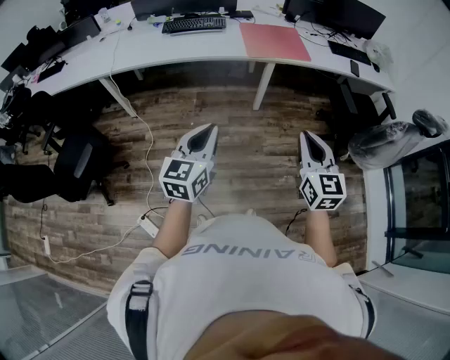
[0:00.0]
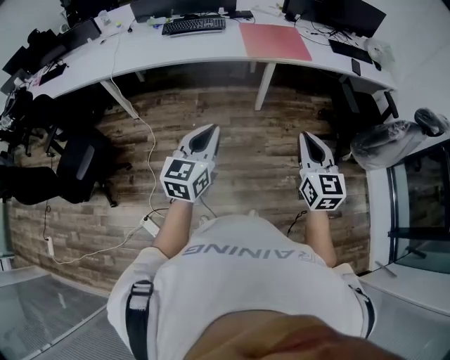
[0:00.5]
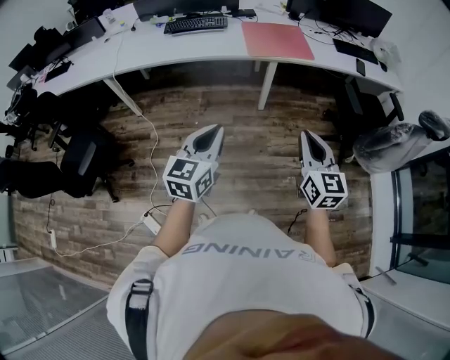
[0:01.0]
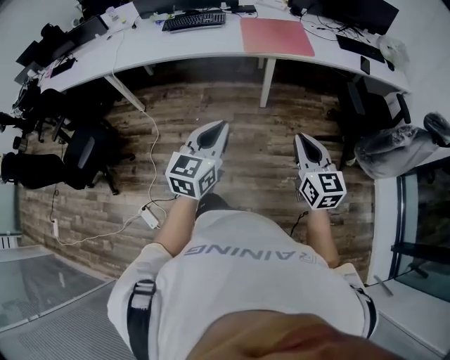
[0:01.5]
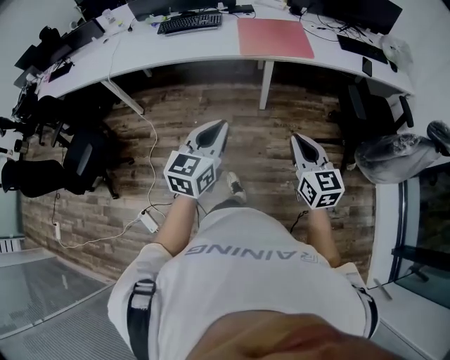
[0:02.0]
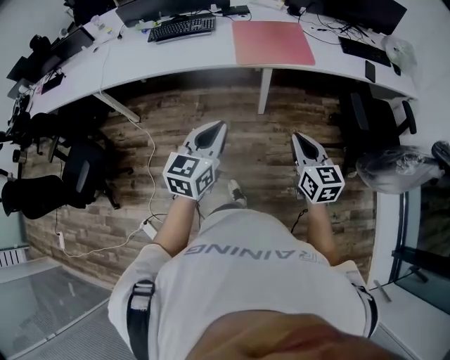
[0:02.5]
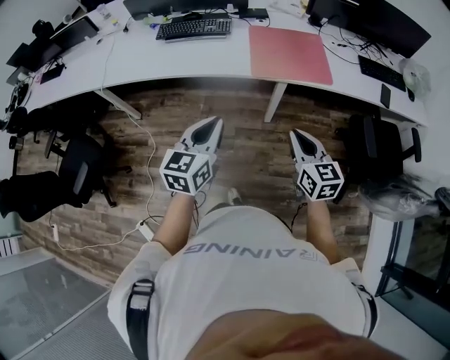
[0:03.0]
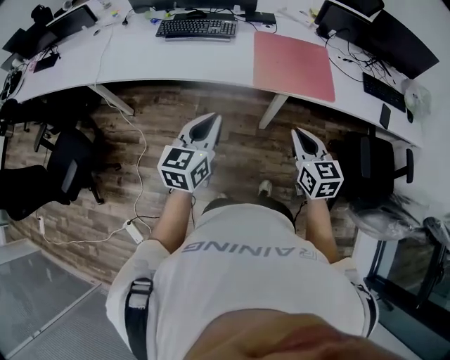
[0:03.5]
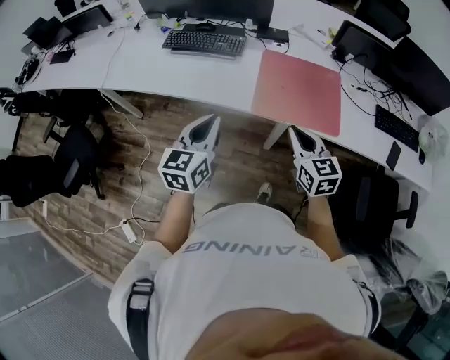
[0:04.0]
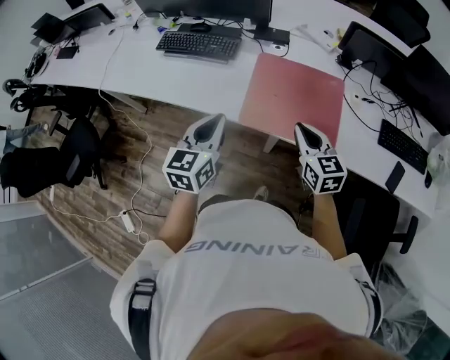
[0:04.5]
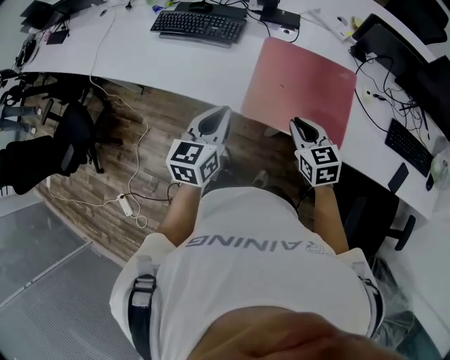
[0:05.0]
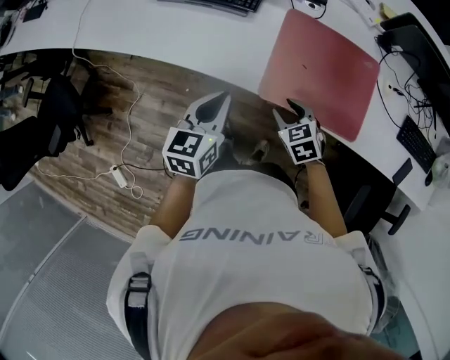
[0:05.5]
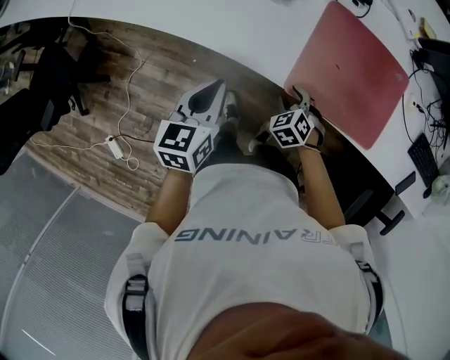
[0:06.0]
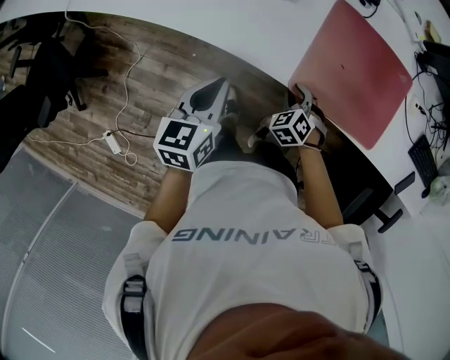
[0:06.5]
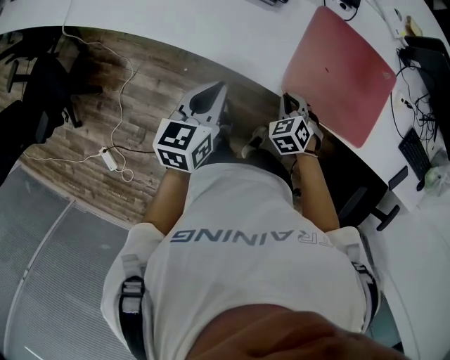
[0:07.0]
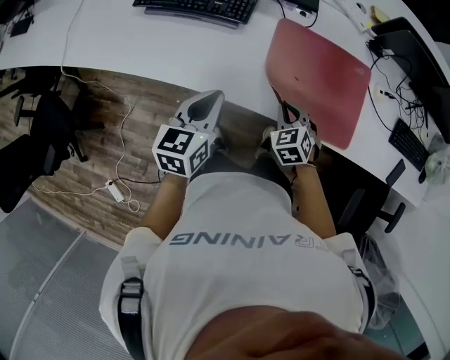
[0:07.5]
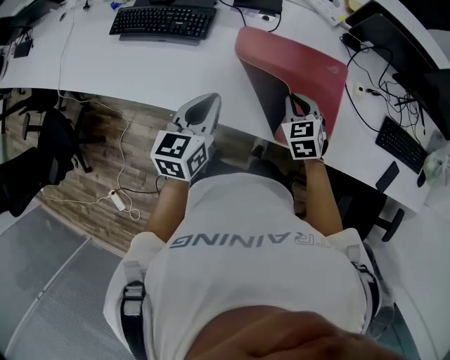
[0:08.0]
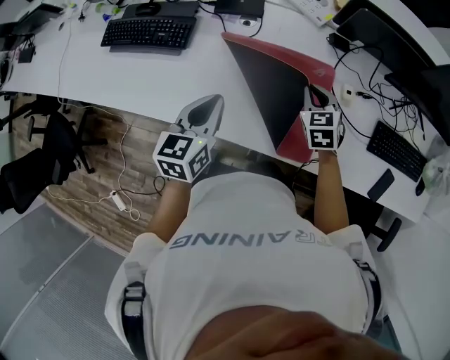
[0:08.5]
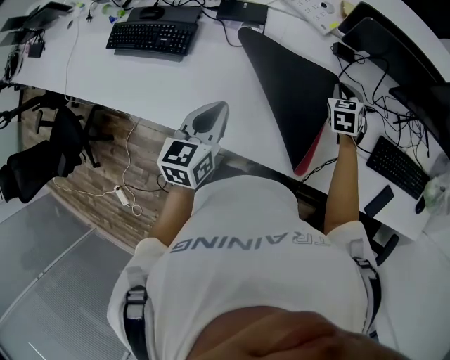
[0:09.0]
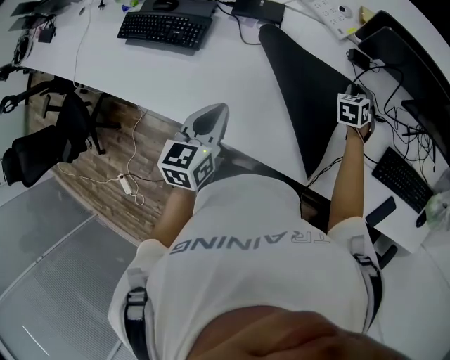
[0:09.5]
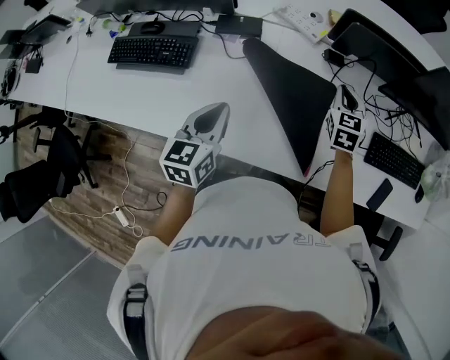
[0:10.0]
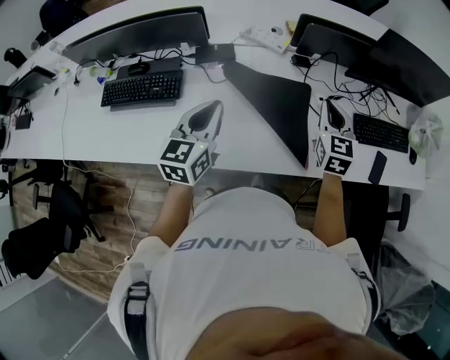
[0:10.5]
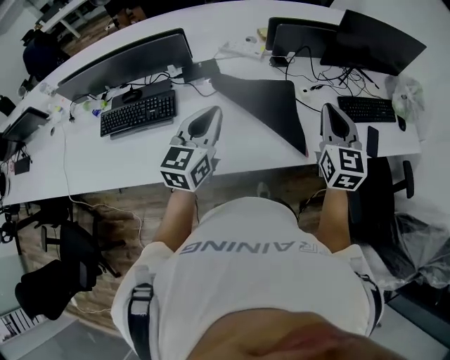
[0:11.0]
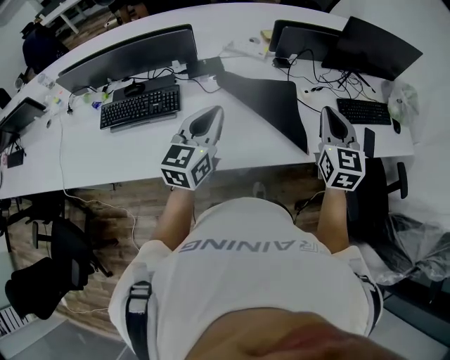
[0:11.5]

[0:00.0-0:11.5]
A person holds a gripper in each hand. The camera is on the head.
0:00.0 to 0:02.0: The left gripper moves to the right and forward, about 20 cm. The right gripper is displaced to the right, forward and downward by some 15 cm.
0:02.0 to 0:04.0: The pair of grippers is taken forward, about 50 cm.
0:04.0 to 0:06.0: Both grippers travel together downward and forward, about 30 cm. The right gripper angles its fingers downward, by some 50 degrees, and opens its fingers. The left gripper rotates approximately 20 degrees.
0:06.0 to 0:07.5: The right gripper moves upward and to the right, approximately 10 cm, and closes up; the left gripper is displaced to the right, upward and forward by roughly 10 cm.
0:07.5 to 0:09.5: The right gripper travels to the right and forward by about 50 cm, and swivels approximately 20 degrees. The left gripper goes approximately 25 cm to the right and forward.
0:09.5 to 0:11.5: The left gripper heads upward and backward, covering some 15 cm, and changes its angle by about 40 degrees. The right gripper heads upward and backward, covering some 50 cm, and angles its fingers upward, by approximately 40 degrees.

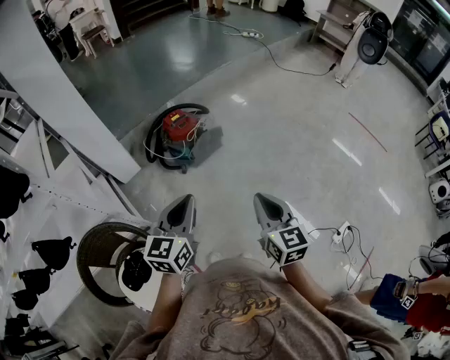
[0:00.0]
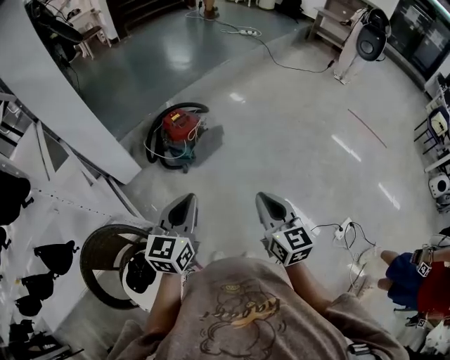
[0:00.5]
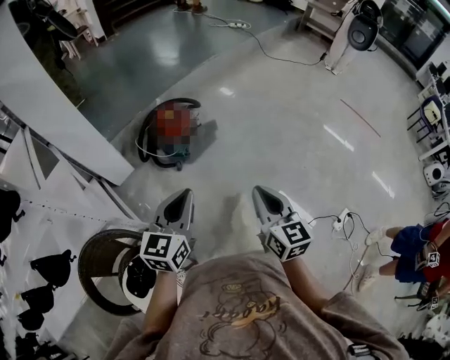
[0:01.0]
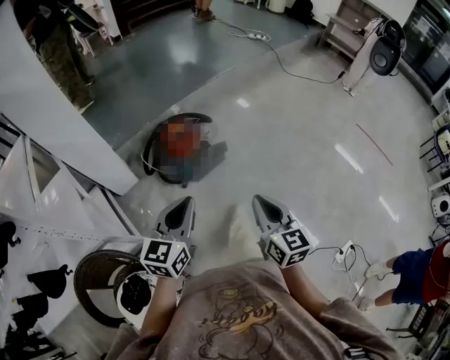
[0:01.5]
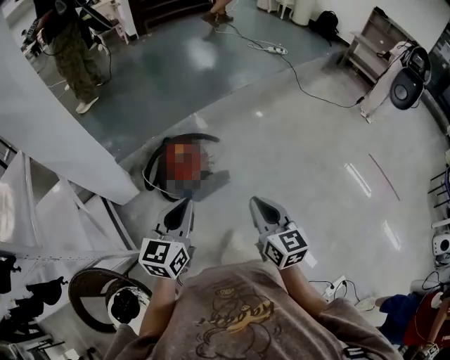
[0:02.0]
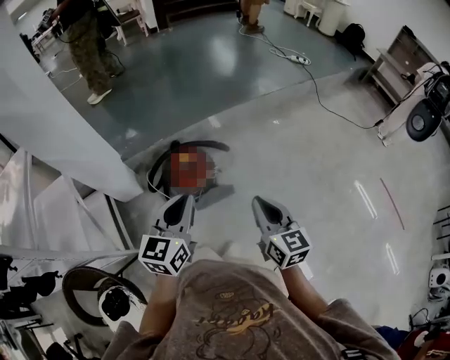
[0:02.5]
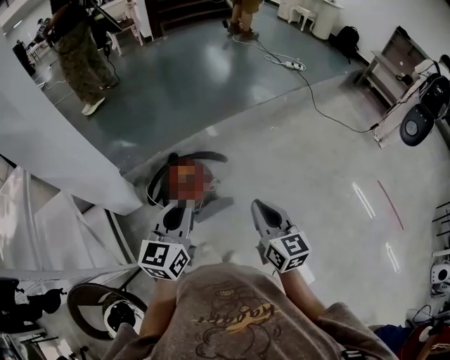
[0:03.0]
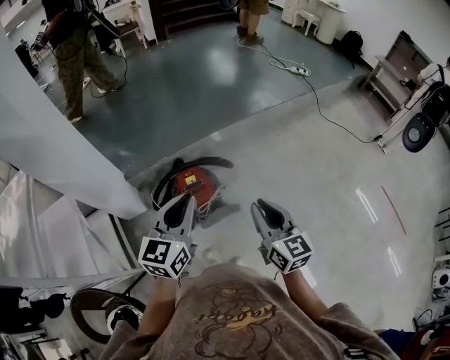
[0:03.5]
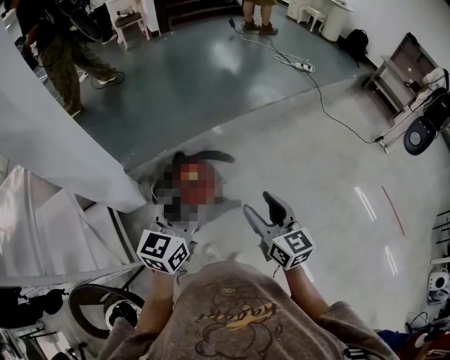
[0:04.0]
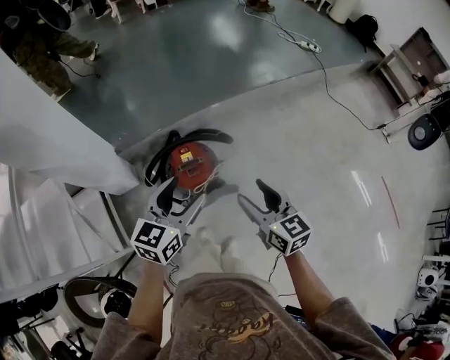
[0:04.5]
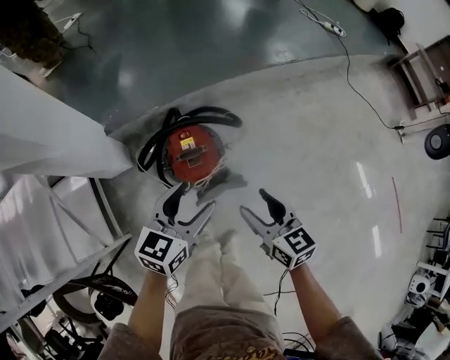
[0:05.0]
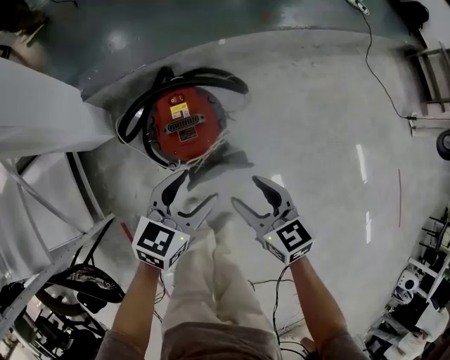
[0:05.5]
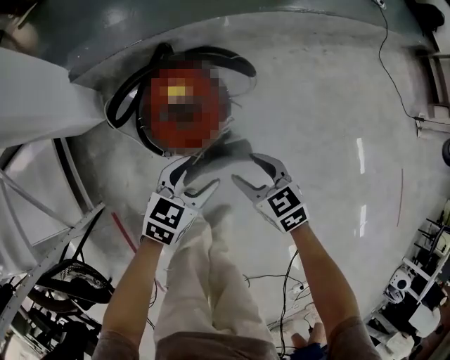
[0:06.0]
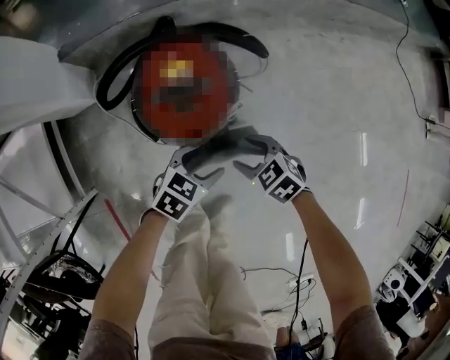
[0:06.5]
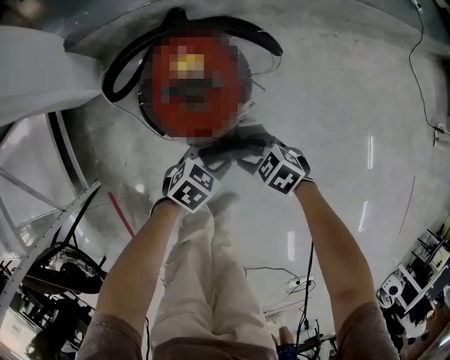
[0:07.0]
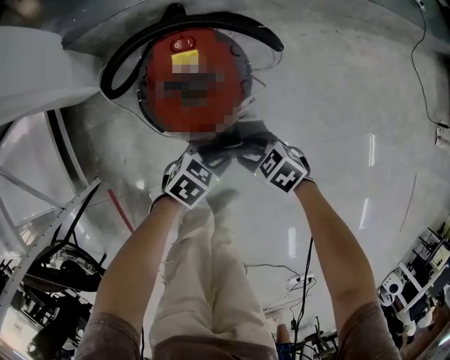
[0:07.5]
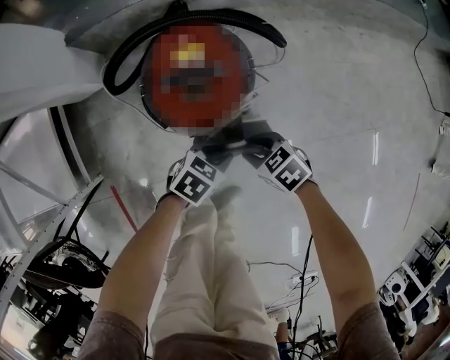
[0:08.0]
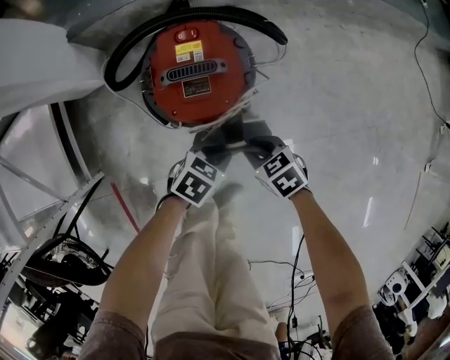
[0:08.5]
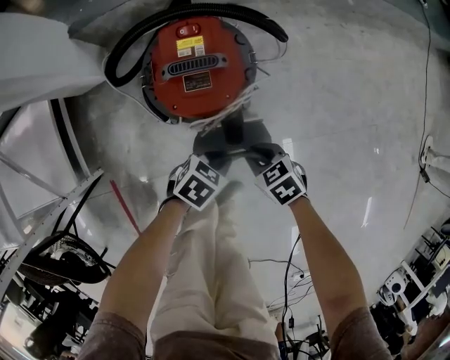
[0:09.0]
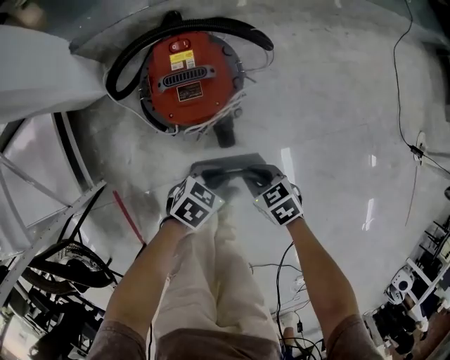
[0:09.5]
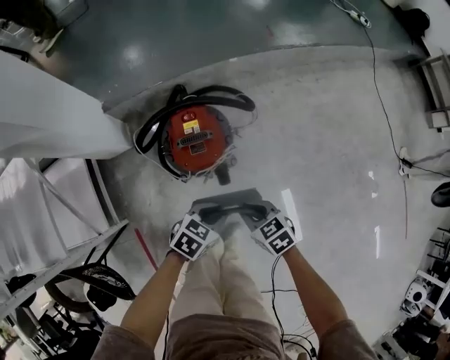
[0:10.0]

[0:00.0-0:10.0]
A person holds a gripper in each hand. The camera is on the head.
0:00.0 to 0:02.0: Both grippers move forward, roughly 30 cm.
0:02.0 to 0:04.0: Both grippers move forward, approximately 15 cm. The left gripper opens up. The right gripper opens its fingers.
0:04.0 to 0:06.0: Both grippers travel together downward, roughly 40 cm. The right gripper angles its fingers downward, by about 40 degrees. Meanwhile the left gripper turns by about 30 degrees.
0:06.0 to 0:08.0: The grippers both shift downward by approximately 15 cm. The right gripper swivels about 30 degrees, and closes its fingers. The left gripper changes its angle by approximately 20 degrees, and closes up.
0:08.0 to 0:10.0: Both grippers travel together upward, roughly 20 cm. The right gripper rotates some 20 degrees, and closes up.

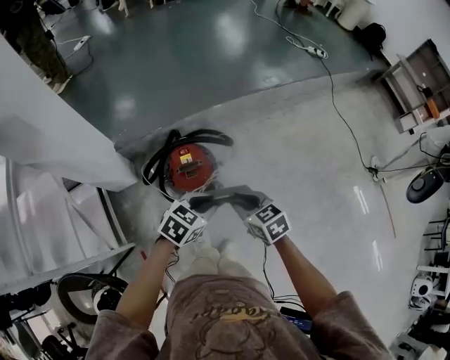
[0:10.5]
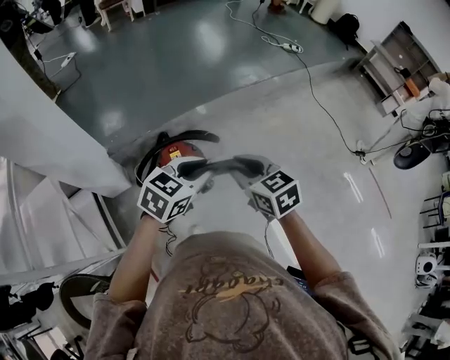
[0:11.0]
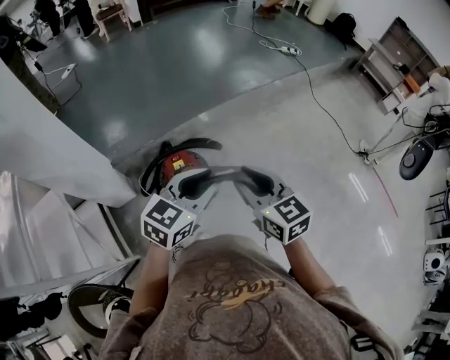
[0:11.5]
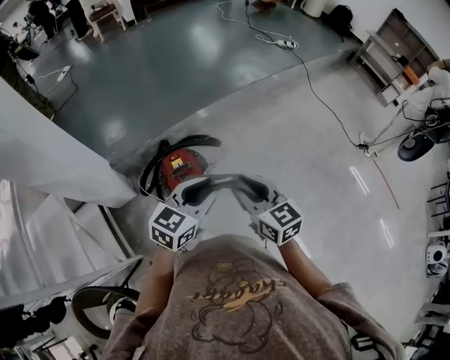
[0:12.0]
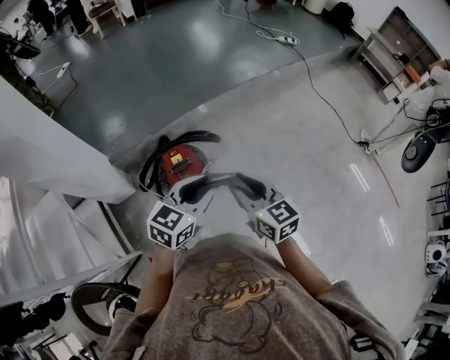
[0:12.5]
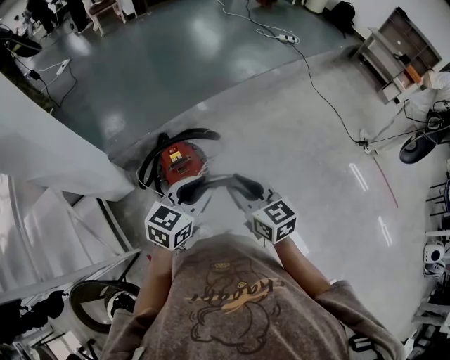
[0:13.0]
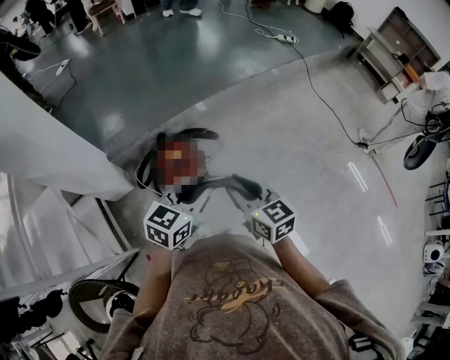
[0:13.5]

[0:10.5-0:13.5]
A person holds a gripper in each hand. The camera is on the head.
0:10.5 to 0:12.0: The two grippers go some 15 cm upward. The left gripper turns by about 20 degrees; the right gripper rotates roughly 30 degrees.
0:12.0 to 0:13.5: There are only small adjustments of the grippers.

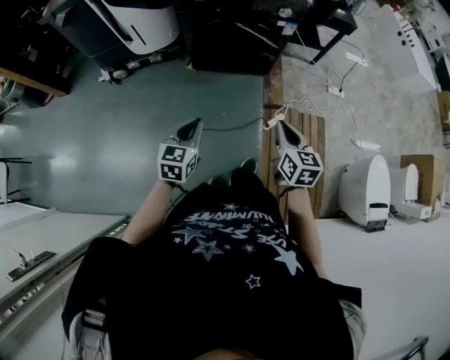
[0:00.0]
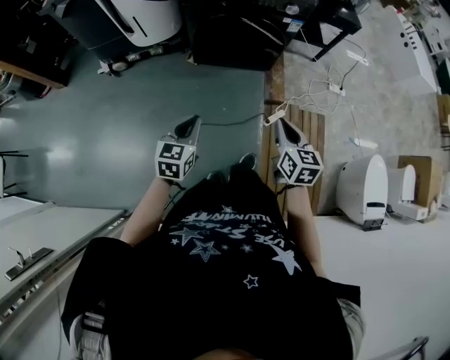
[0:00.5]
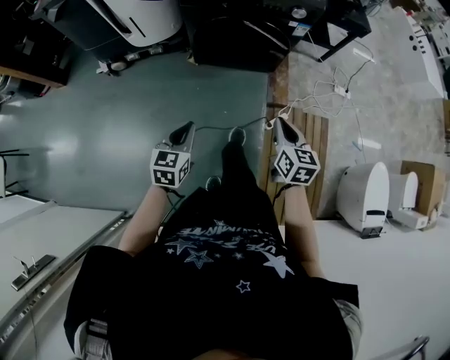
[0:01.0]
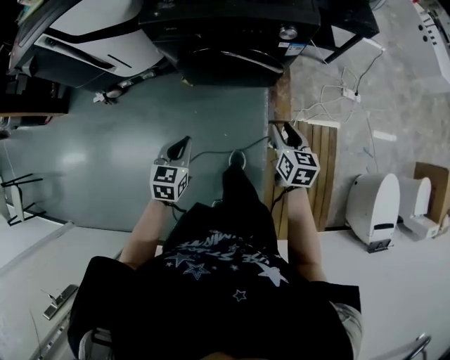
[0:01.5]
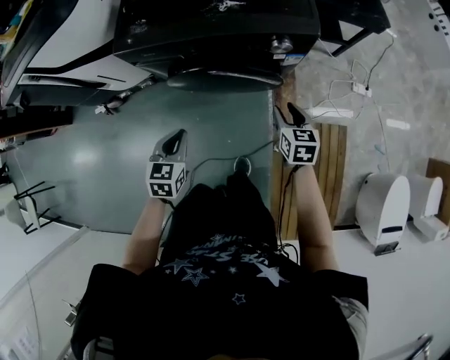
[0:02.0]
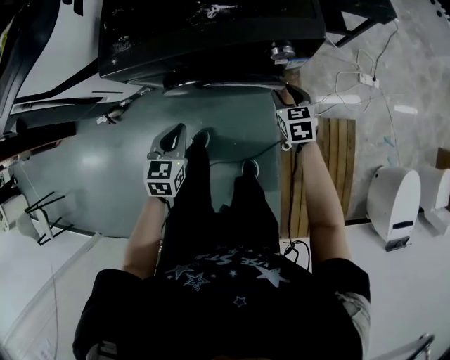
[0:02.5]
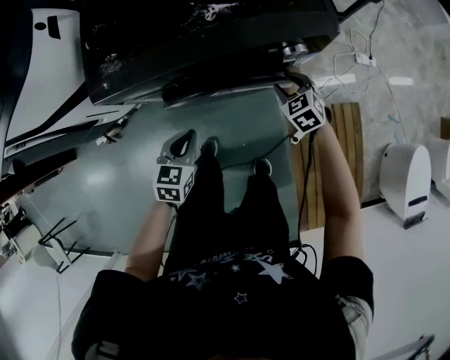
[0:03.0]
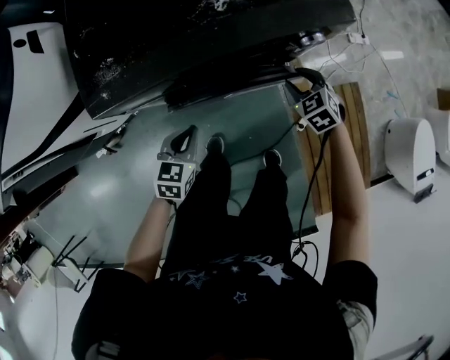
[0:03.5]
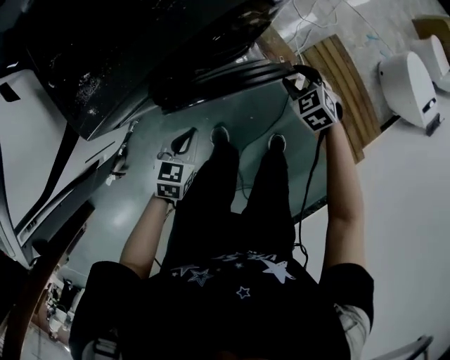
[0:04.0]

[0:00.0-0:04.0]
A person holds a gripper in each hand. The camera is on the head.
0:00.0 to 0:02.0: The two grippers go roughly 40 cm forward. The right gripper opens up.
0:02.0 to 0:04.0: The two grippers go roughly 10 cm downward. The right gripper swivels about 30 degrees. Meanwhile the left gripper changes its angle by roughly 50 degrees.
